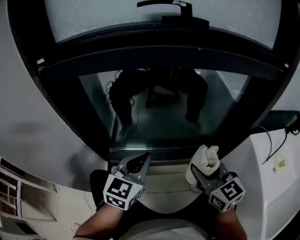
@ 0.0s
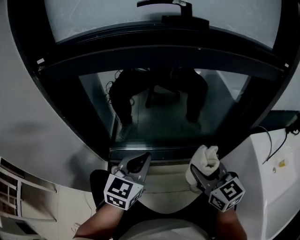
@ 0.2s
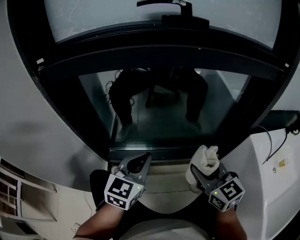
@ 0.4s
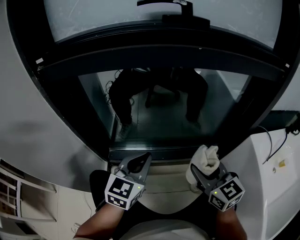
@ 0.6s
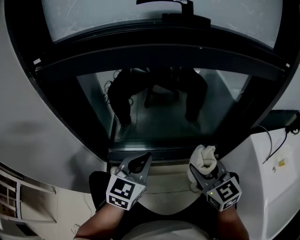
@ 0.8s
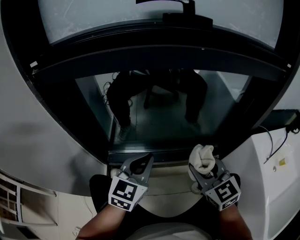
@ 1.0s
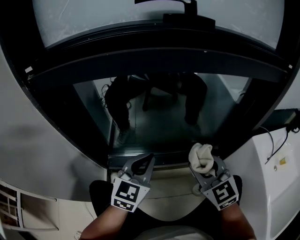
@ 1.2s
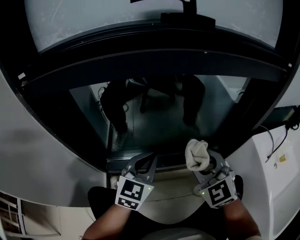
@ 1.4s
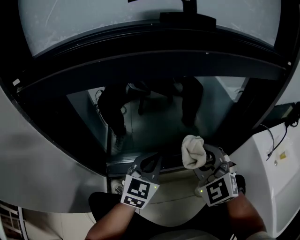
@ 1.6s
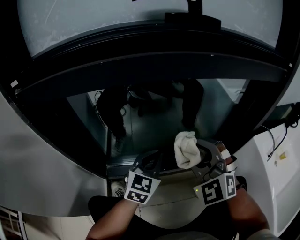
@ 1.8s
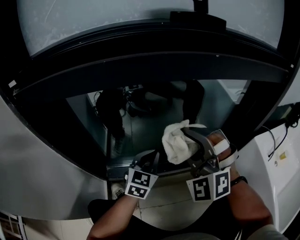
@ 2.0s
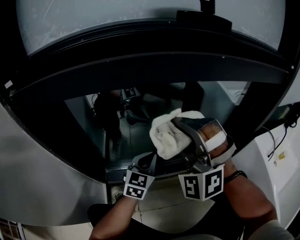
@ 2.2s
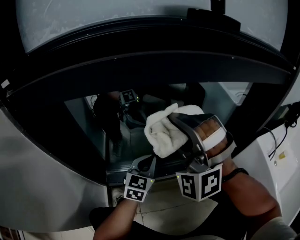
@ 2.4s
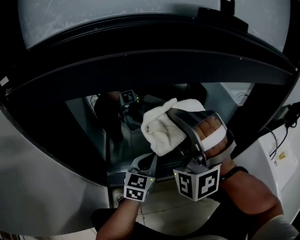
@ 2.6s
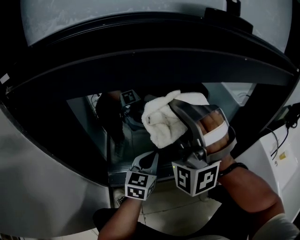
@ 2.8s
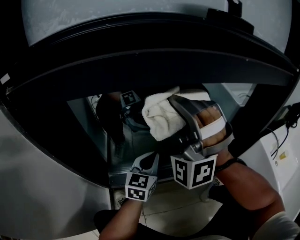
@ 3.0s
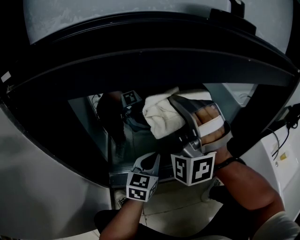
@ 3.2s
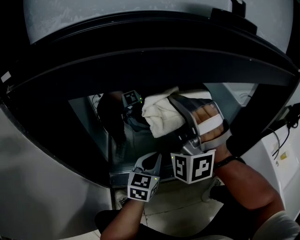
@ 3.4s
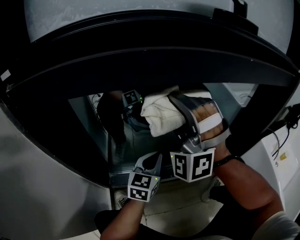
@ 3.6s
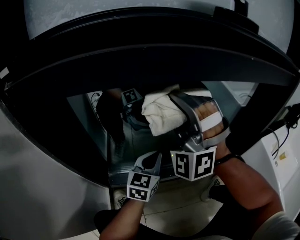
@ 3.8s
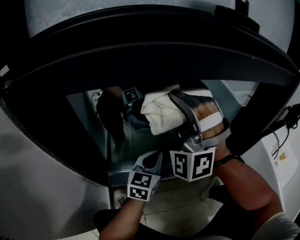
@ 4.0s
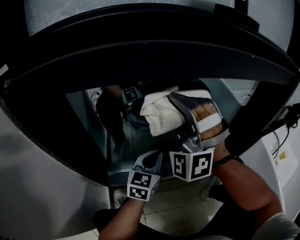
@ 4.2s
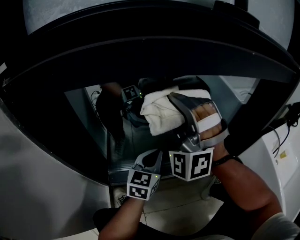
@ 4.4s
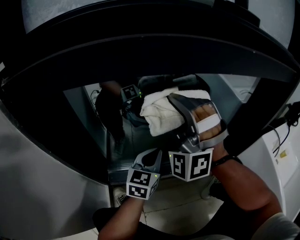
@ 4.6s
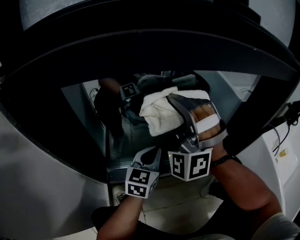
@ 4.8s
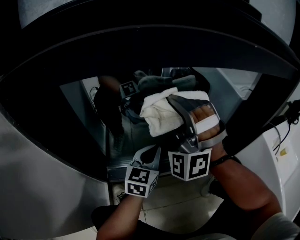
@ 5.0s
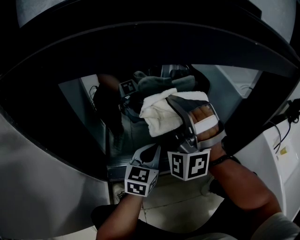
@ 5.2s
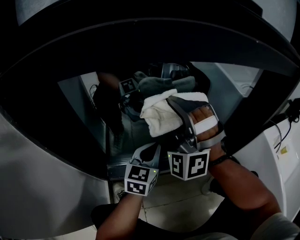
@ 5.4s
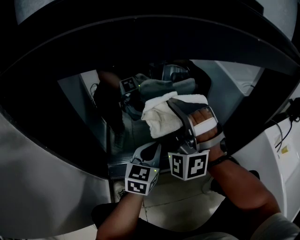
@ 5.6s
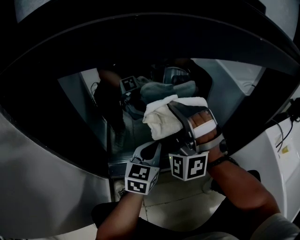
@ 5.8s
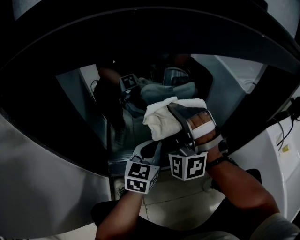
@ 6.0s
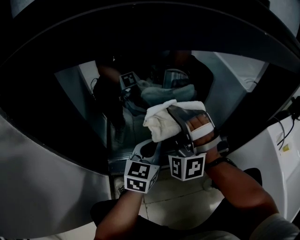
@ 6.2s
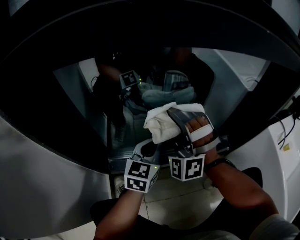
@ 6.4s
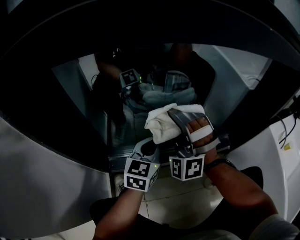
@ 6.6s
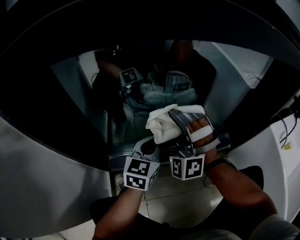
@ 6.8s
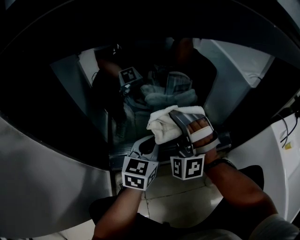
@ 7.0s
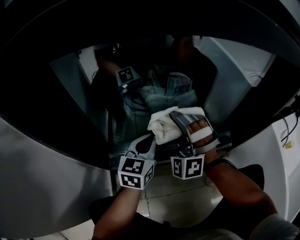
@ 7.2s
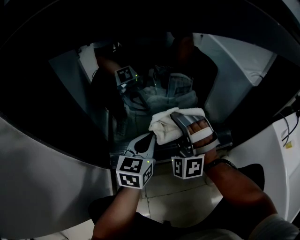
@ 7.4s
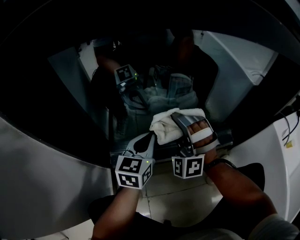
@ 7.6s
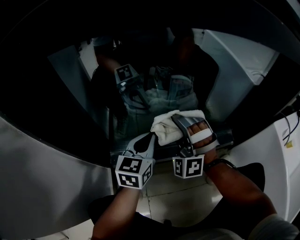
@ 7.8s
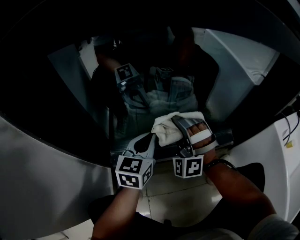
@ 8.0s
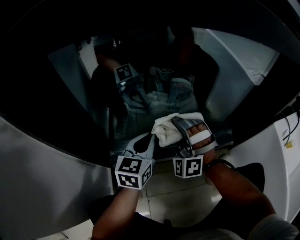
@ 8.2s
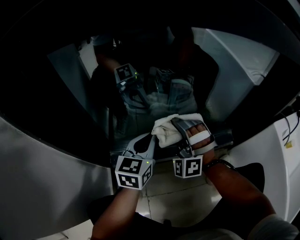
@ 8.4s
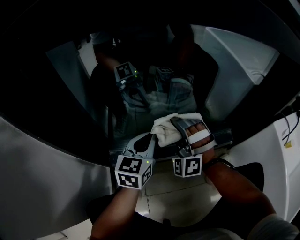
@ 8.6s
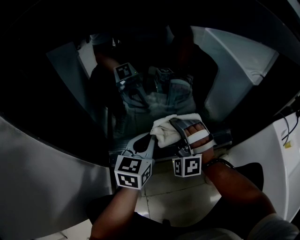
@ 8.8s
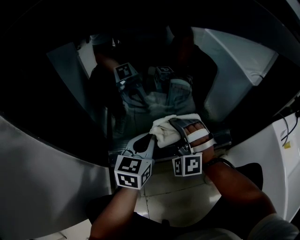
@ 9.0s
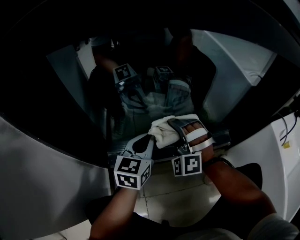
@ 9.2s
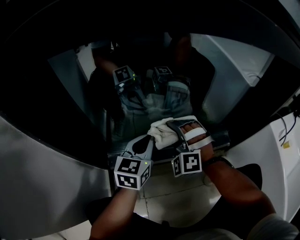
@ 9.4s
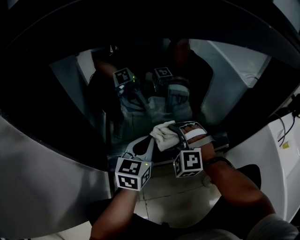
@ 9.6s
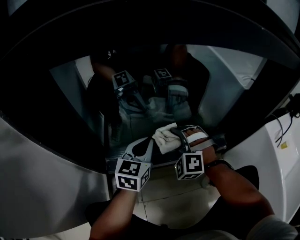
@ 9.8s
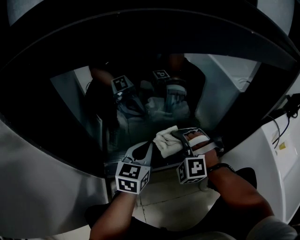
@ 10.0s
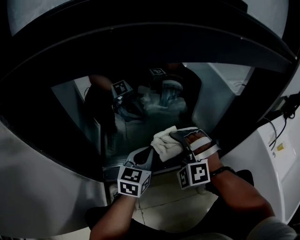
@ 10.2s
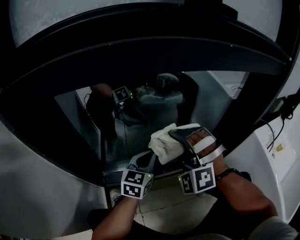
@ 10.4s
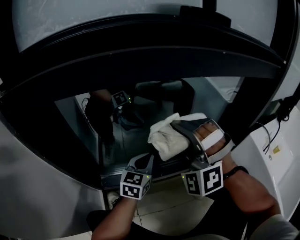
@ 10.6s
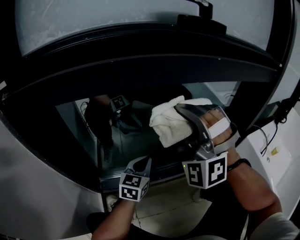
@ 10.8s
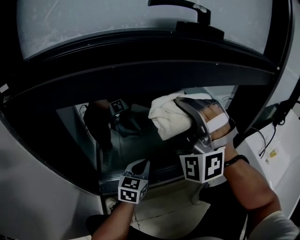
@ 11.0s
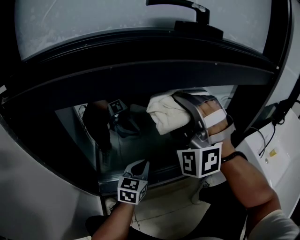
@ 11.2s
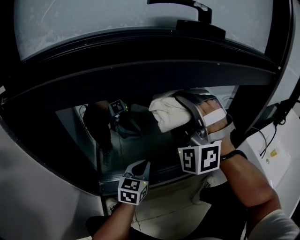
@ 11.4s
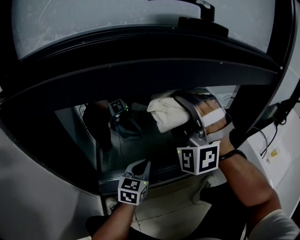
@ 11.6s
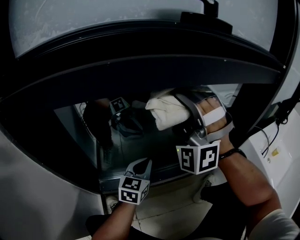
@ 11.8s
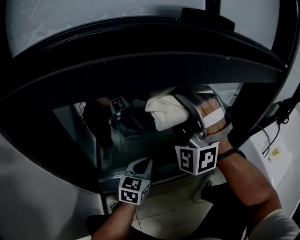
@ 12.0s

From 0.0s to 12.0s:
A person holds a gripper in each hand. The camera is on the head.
From 0.0s to 1.6s: The left gripper changes place by some 10 cm.
From 1.6s to 3.0s: The left gripper changes place by roughly 15 cm.

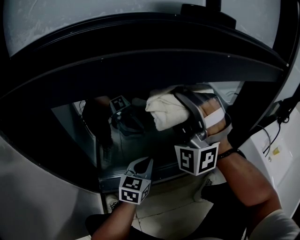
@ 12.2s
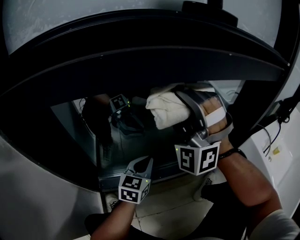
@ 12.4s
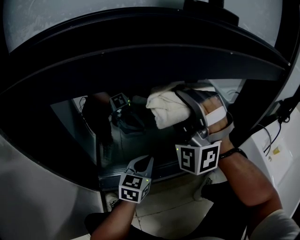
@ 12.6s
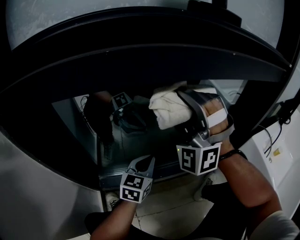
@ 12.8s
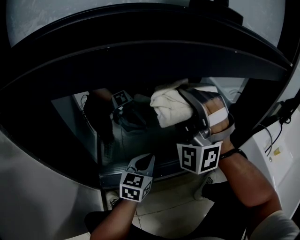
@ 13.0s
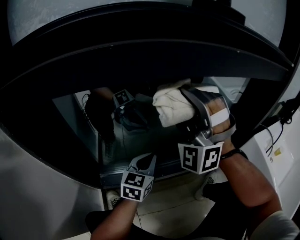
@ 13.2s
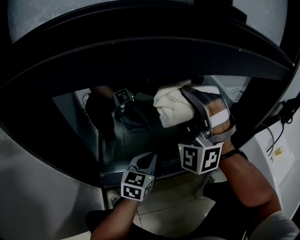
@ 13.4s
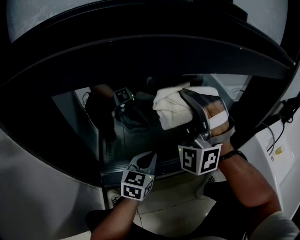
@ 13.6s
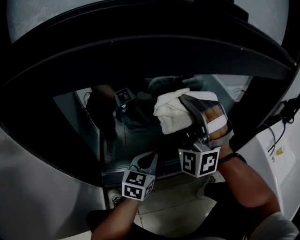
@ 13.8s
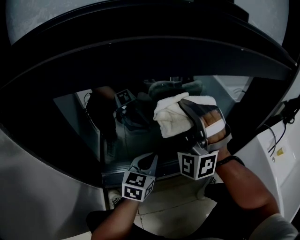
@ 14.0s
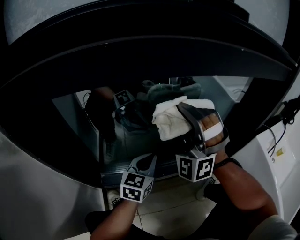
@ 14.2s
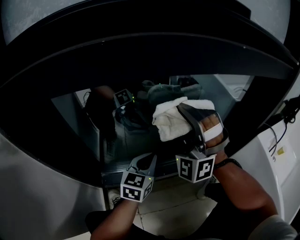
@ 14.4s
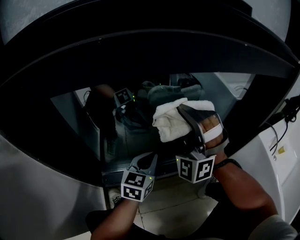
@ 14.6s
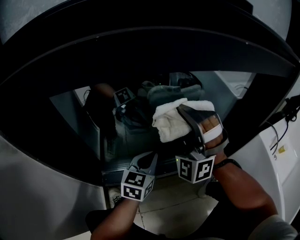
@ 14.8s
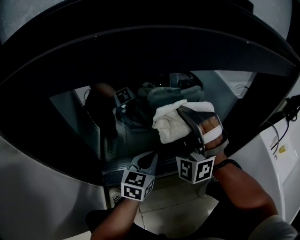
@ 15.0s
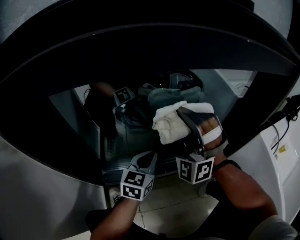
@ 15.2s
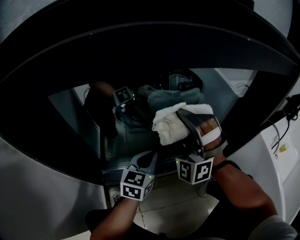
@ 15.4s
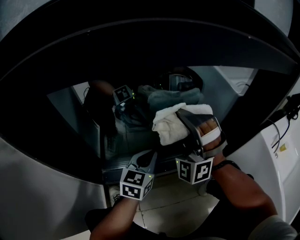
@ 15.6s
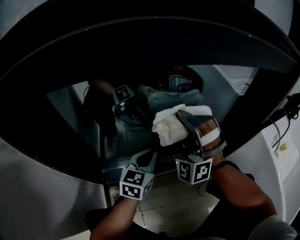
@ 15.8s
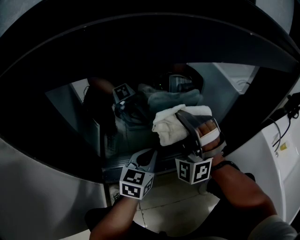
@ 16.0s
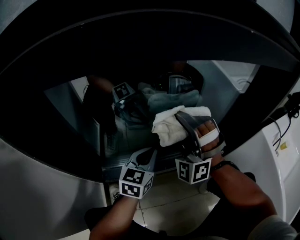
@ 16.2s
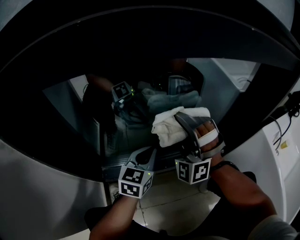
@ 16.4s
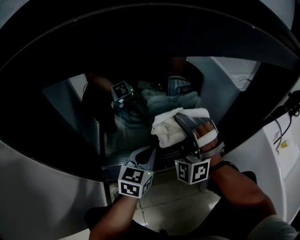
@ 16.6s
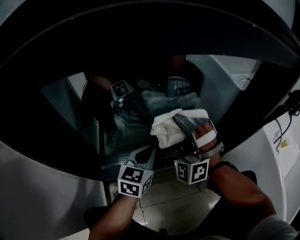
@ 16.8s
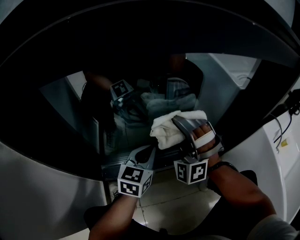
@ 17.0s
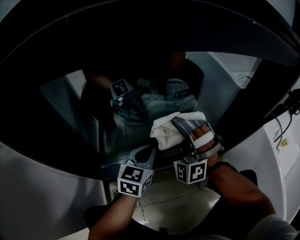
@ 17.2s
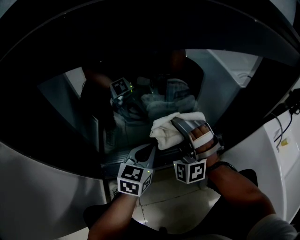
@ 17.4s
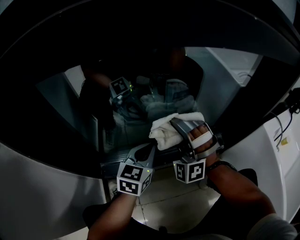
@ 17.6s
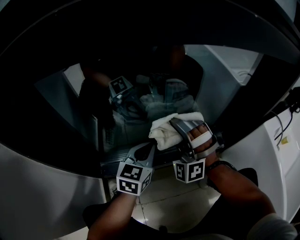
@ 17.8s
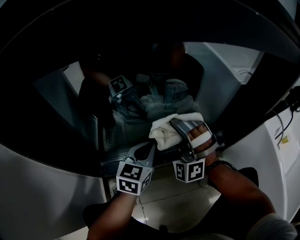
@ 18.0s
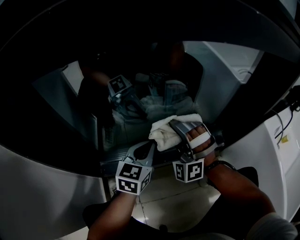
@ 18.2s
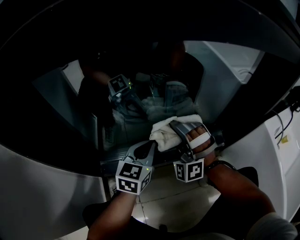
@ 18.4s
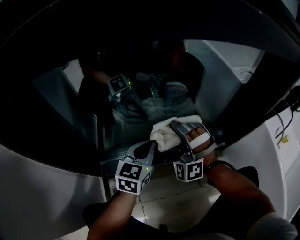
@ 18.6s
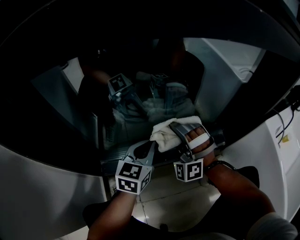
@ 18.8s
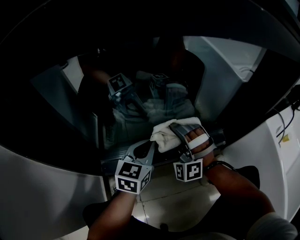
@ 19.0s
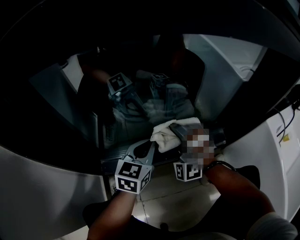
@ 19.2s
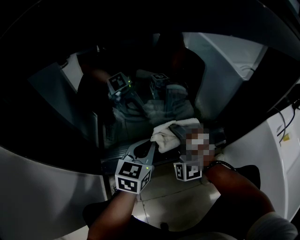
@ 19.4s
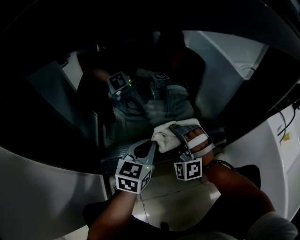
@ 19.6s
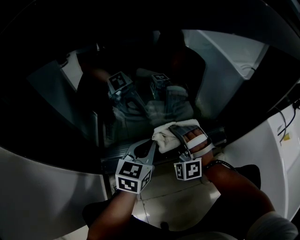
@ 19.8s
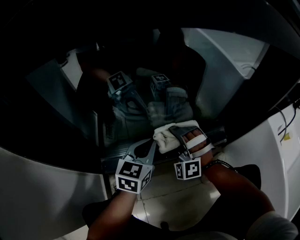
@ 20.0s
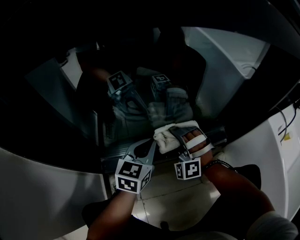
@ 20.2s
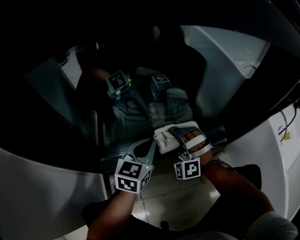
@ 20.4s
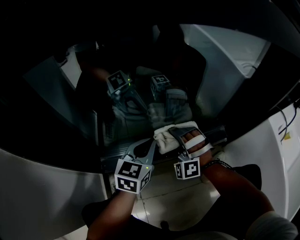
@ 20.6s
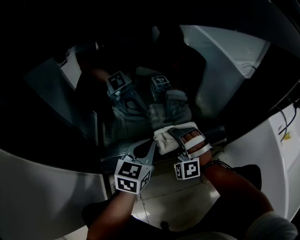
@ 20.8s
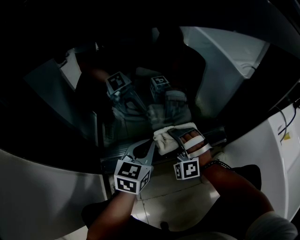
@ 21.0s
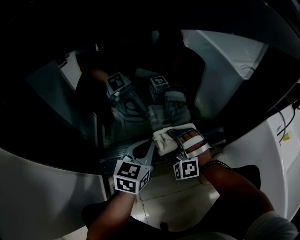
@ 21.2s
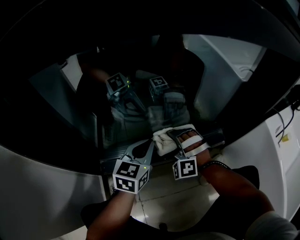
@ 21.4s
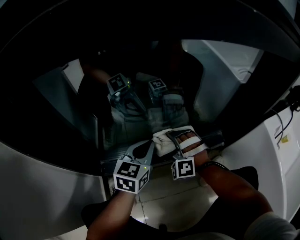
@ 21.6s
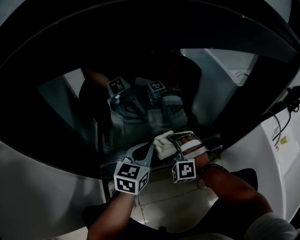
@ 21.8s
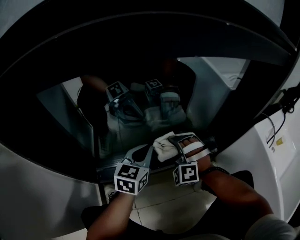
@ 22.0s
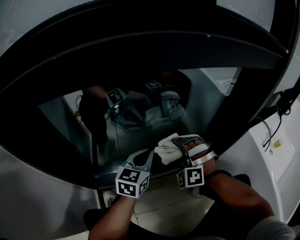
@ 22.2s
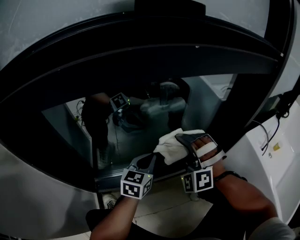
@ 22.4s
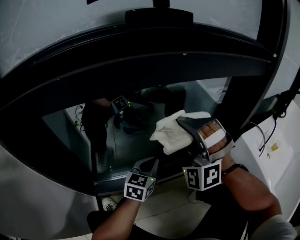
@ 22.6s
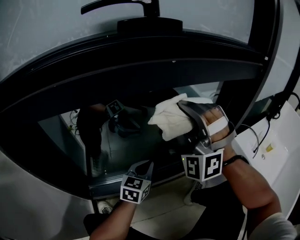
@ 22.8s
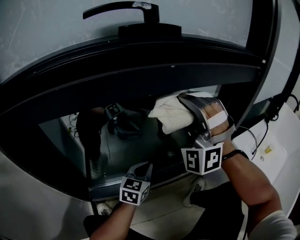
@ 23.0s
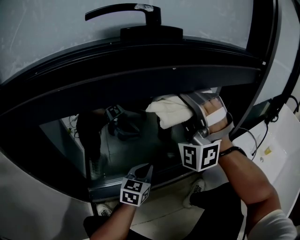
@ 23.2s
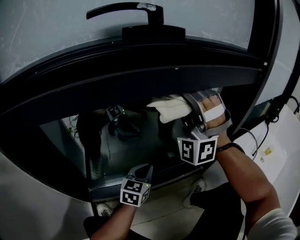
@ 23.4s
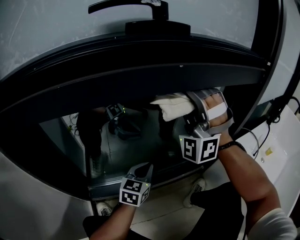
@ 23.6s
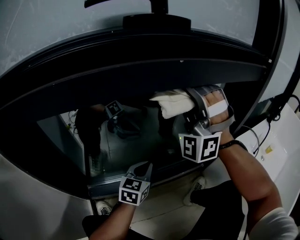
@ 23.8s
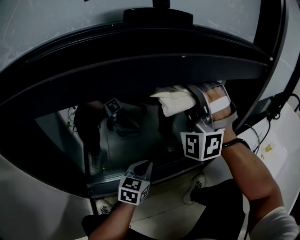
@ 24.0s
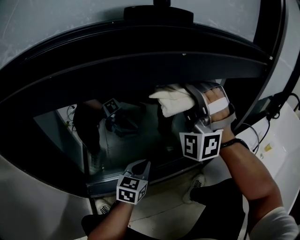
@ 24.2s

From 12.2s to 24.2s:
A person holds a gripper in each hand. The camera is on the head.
From 21.2s to 22.6s: The left gripper moves about 10 cm.

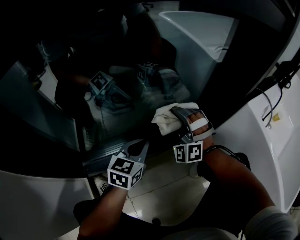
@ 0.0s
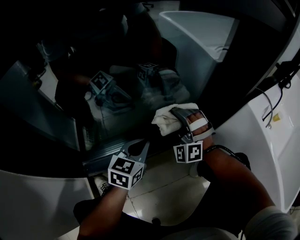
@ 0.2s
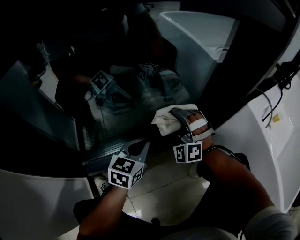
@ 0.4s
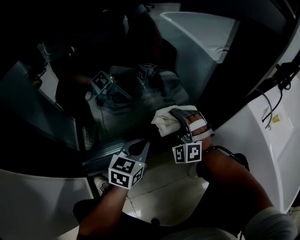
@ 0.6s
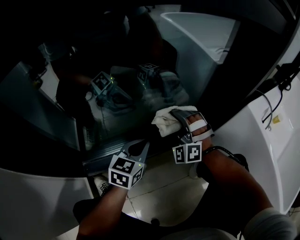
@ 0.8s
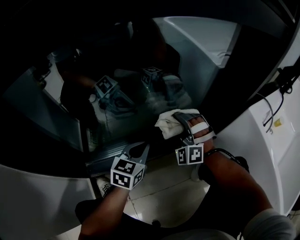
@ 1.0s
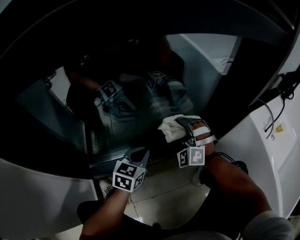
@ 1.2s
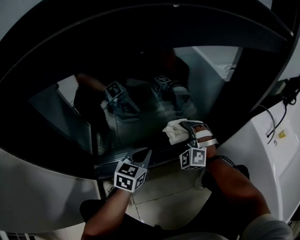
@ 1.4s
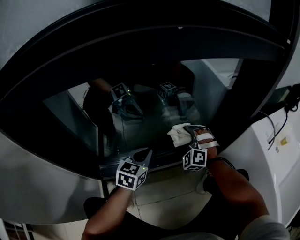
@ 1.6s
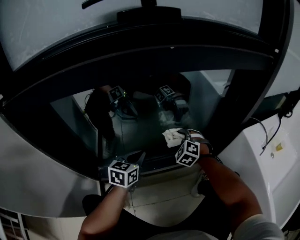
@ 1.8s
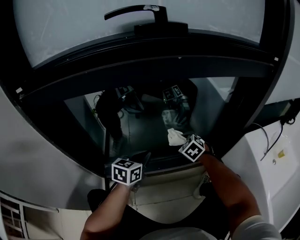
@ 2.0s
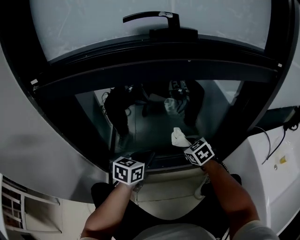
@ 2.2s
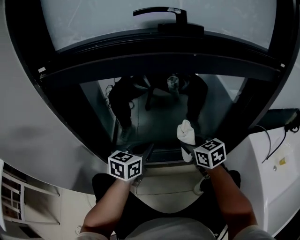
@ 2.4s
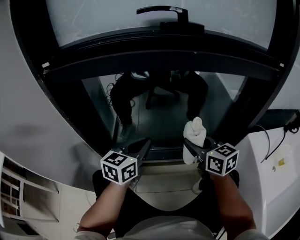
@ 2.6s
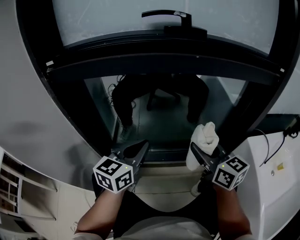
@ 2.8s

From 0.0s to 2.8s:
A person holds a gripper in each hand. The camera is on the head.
From 1.4s to 2.8s: The left gripper heads upward, covering approximately 25 cm, and changes its angle by roughly 20 degrees.
